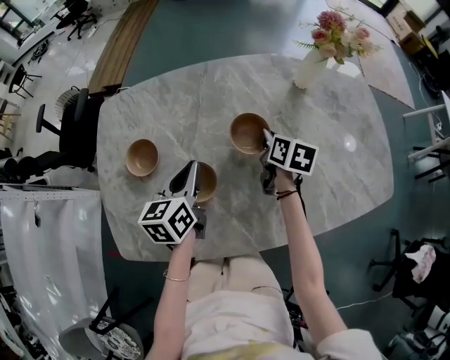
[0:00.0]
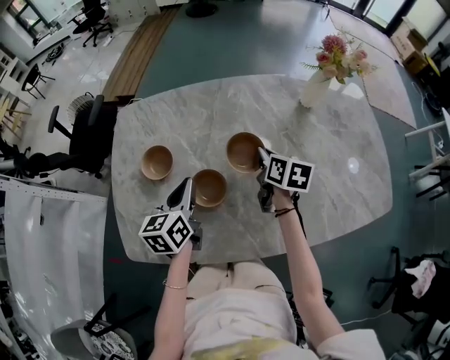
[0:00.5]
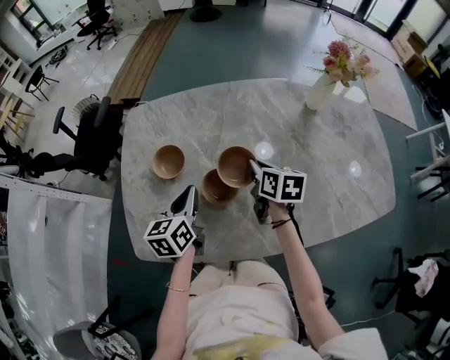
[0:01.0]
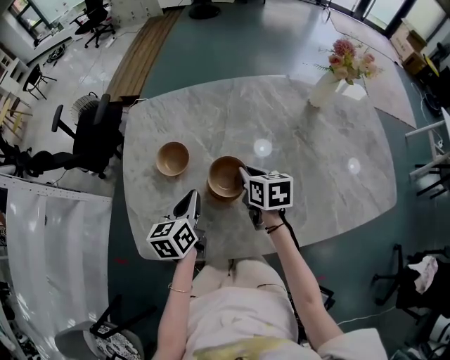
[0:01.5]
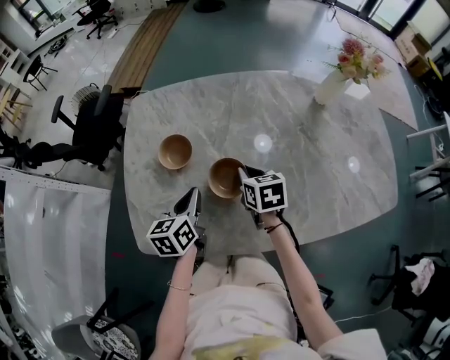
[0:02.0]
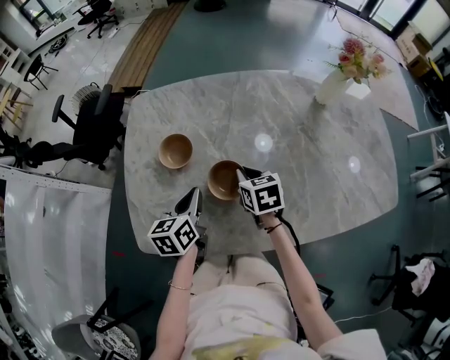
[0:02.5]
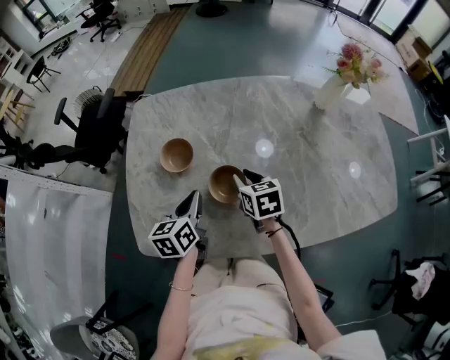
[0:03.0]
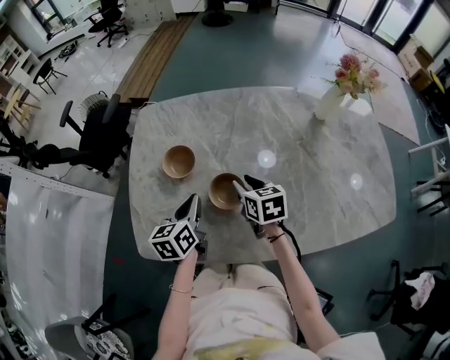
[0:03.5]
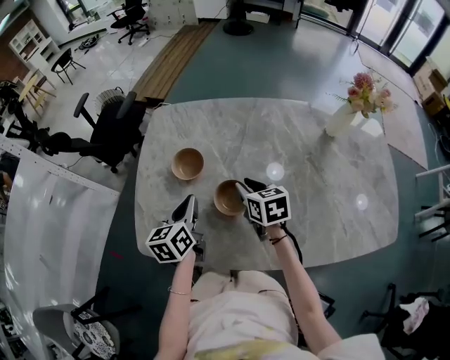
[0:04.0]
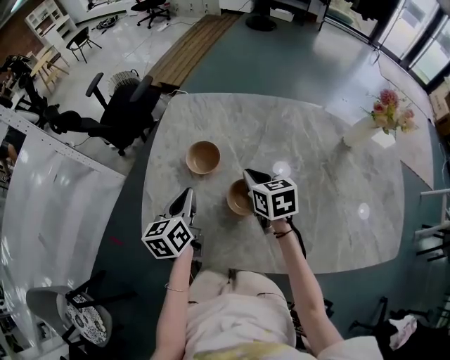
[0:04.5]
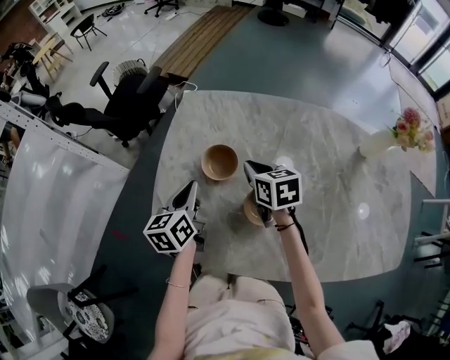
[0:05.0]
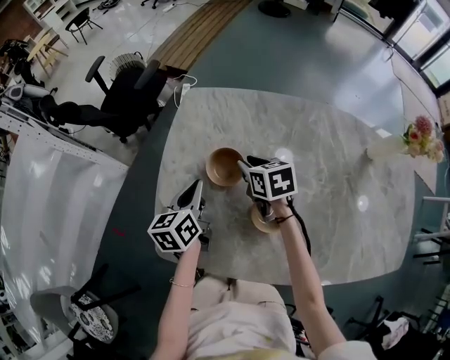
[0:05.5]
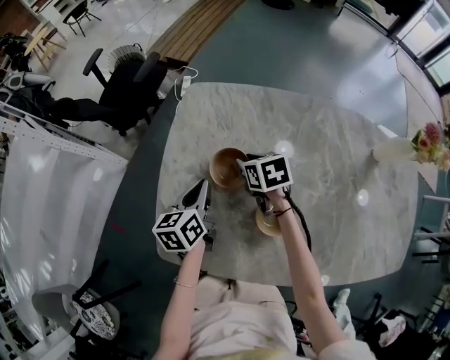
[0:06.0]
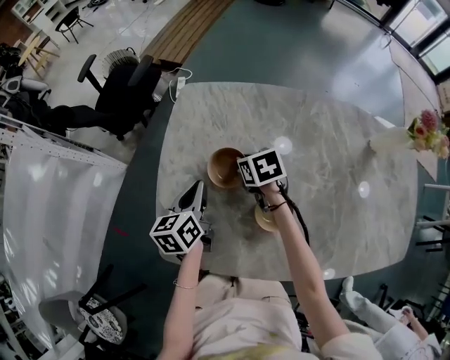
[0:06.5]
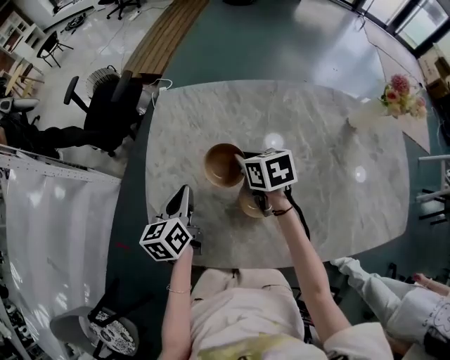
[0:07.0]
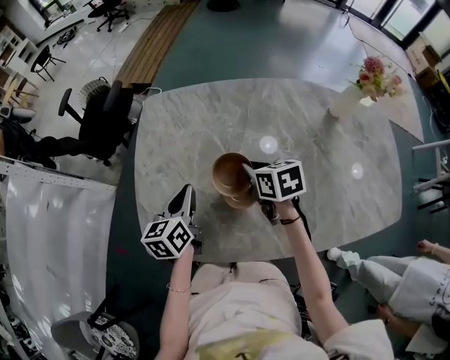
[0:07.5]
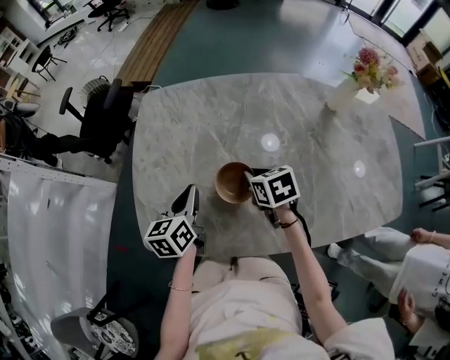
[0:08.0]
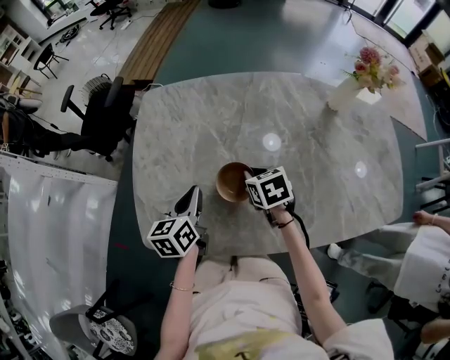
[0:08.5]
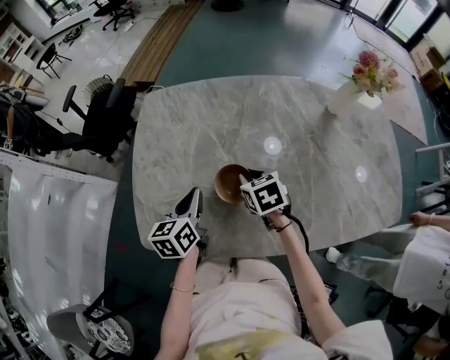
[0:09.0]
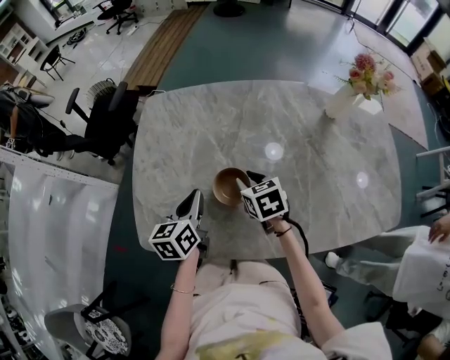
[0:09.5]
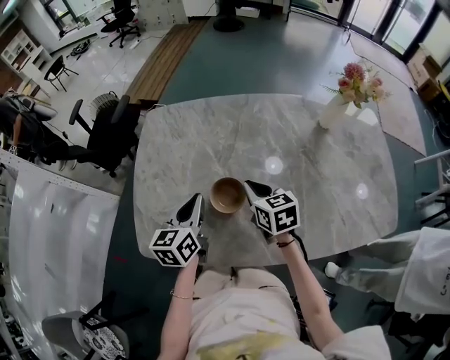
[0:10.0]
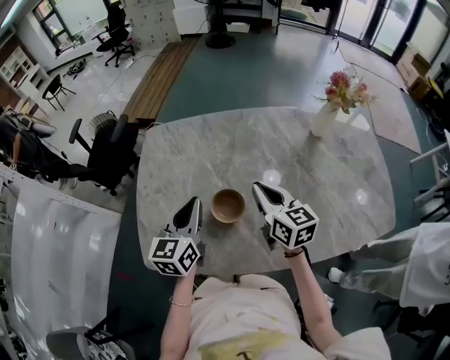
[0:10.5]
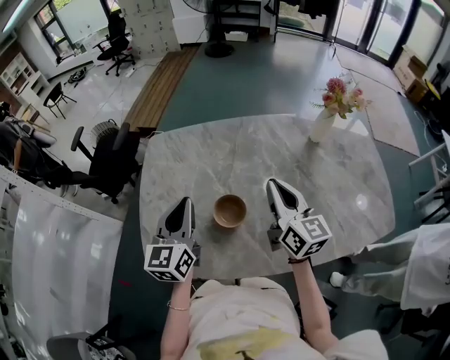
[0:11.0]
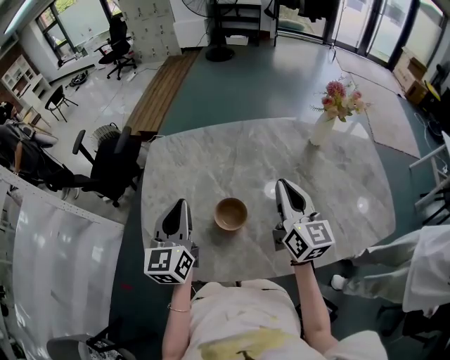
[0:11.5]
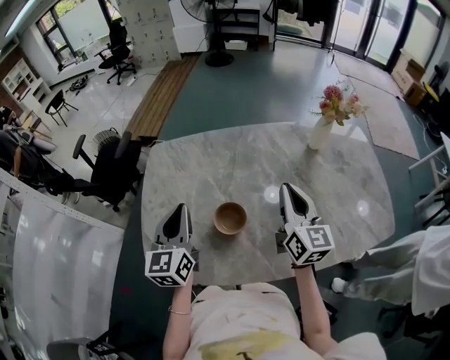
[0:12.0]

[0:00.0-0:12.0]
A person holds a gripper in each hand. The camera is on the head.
0:00.0 to 0:02.0: The left gripper moves to the left and backward, some 15 cm. Meanwhile the right gripper travels to the left and backward by about 20 cm, and swivels about 30 degrees.
0:02.0 to 0:04.0: The grippers move only a little.
0:04.0 to 0:06.0: Both grippers move forward and to the left, about 15 cm. The right gripper closes and opens again.
0:06.0 to 0:08.0: The right gripper goes approximately 20 cm backward and to the right, and closes its fingers; the left gripper moves backward and to the right, roughly 10 cm.
0:08.0 to 0:10.0: The left gripper ends up some 5 cm from where it was; the right gripper moves approximately 5 cm, and opens and closes again.
0:10.0 to 0:12.0: The left gripper goes about 10 cm upward, and rotates some 20 degrees. Meanwhile the right gripper goes roughly 20 cm upward and to the right, and tips its fingers upward by approximately 30 degrees.

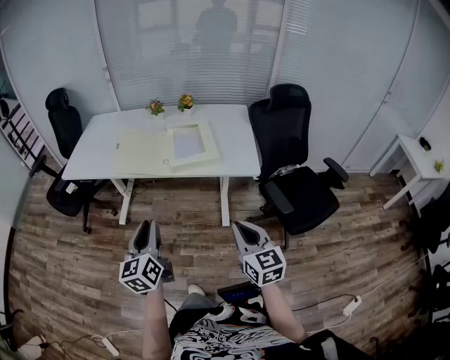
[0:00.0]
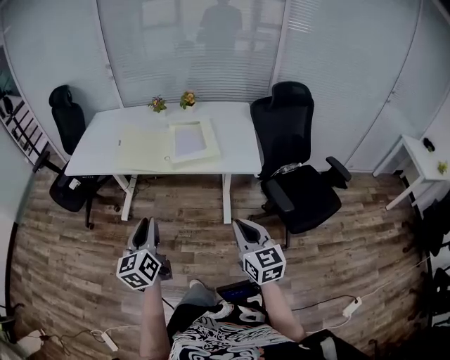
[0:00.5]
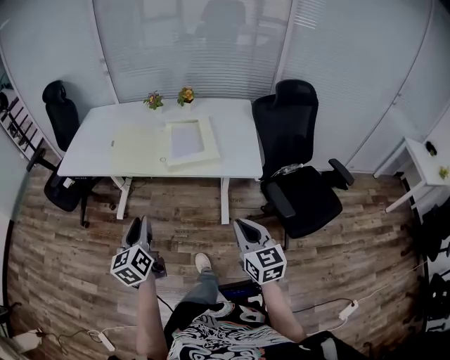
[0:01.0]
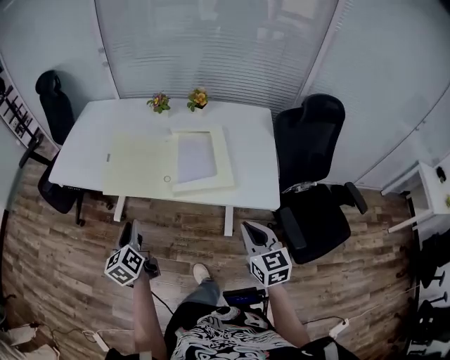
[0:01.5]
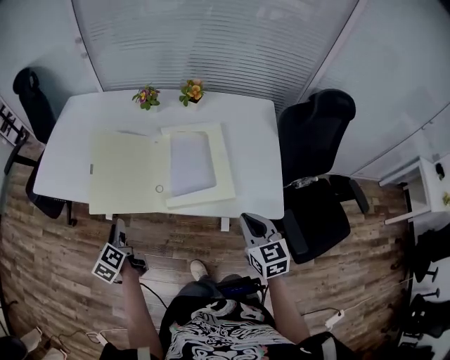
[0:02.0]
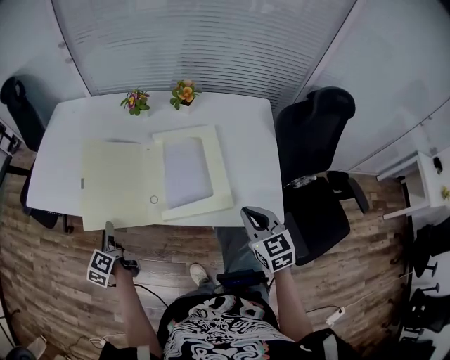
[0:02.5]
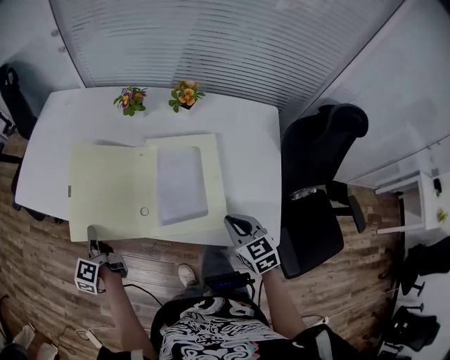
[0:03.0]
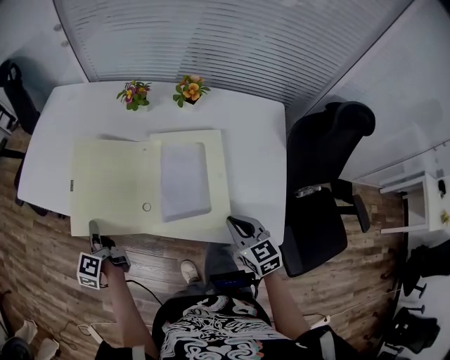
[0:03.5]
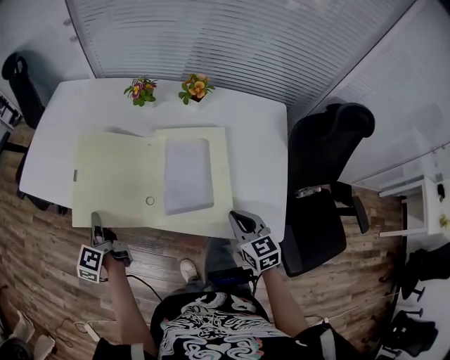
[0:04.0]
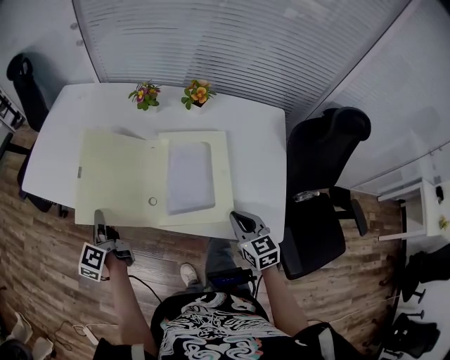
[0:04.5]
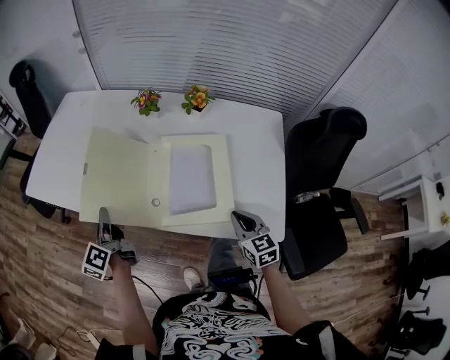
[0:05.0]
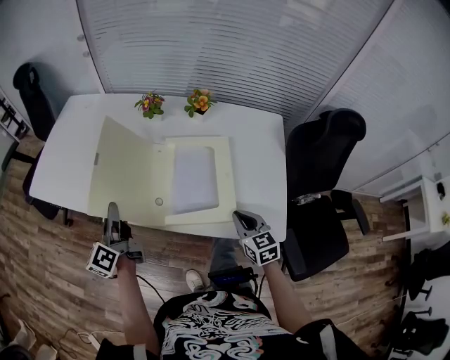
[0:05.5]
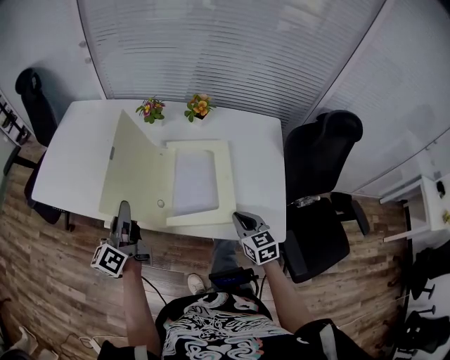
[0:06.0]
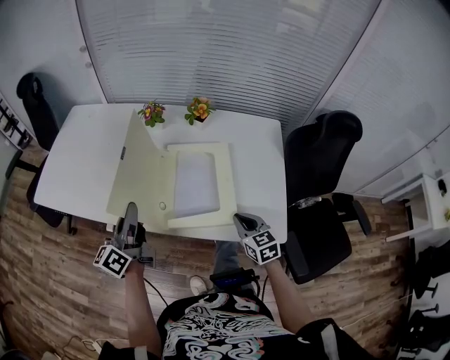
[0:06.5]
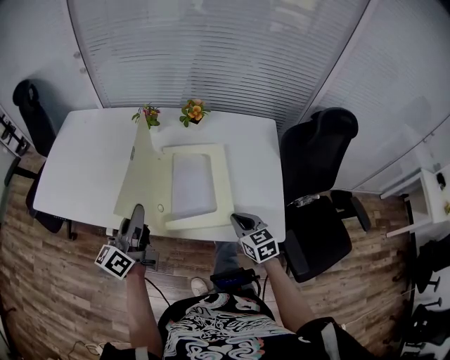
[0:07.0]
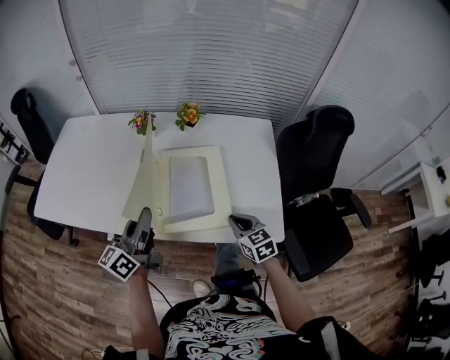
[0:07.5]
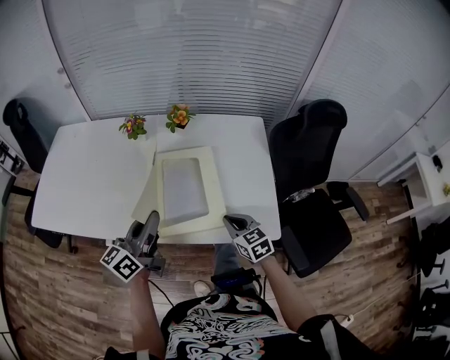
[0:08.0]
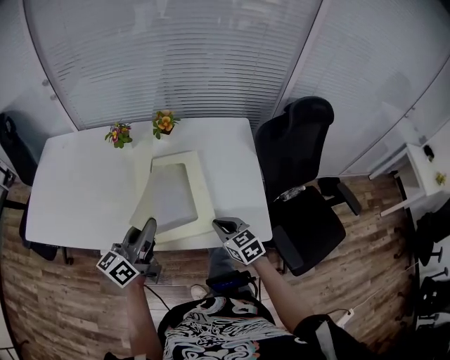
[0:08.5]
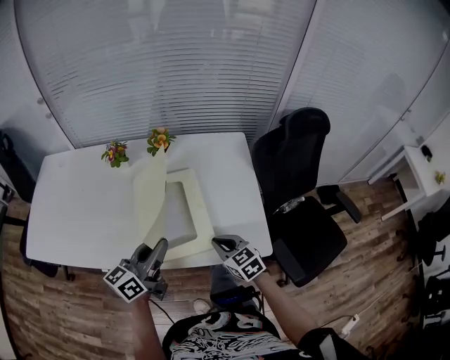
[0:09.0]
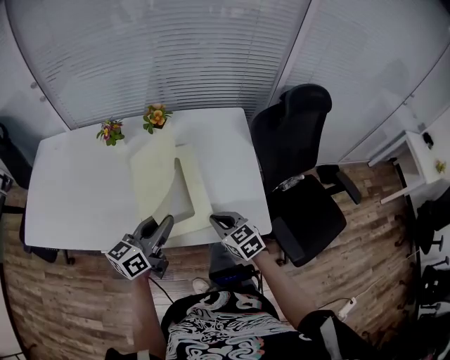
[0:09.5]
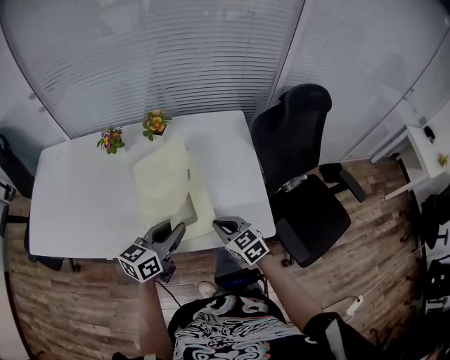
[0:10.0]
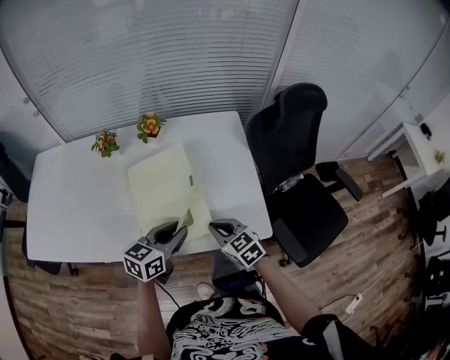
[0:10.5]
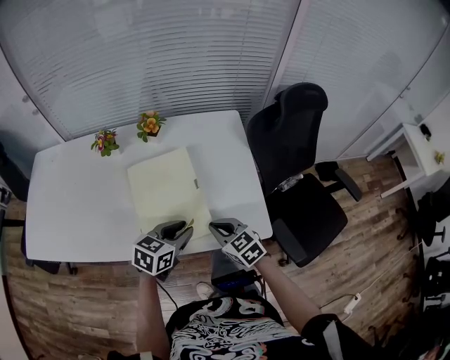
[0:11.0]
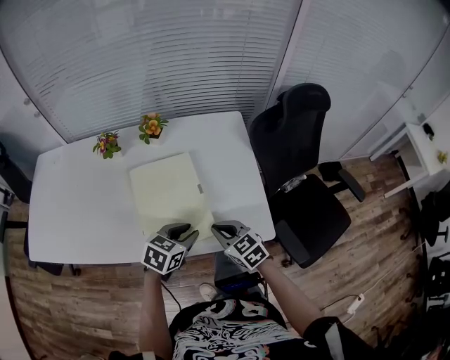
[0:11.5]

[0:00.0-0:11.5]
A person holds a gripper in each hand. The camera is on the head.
0:00.0 to 0:02.0: The left gripper shifts about 35 cm forward and downward, and turns by roughly 40 degrees. The right gripper goes approximately 30 cm forward.
0:02.0 to 0:04.0: The right gripper goes approximately 10 cm forward and downward. Meanwhile the left gripper is displaced forward by roughly 10 cm, turns by about 20 degrees, and closes up.
0:04.0 to 0:06.0: The left gripper heads upward and to the right, covering about 15 cm, and changes its angle by some 30 degrees.
0:06.0 to 0:07.5: The left gripper shifts about 10 cm to the right, and rotates some 20 degrees.
0:07.5 to 0:09.5: The left gripper moves to the right, some 15 cm, and changes its angle by approximately 30 degrees.
0:09.5 to 0:11.5: The left gripper shifts approximately 10 cm downward and to the right, and angles its fingers downward, by some 40 degrees.

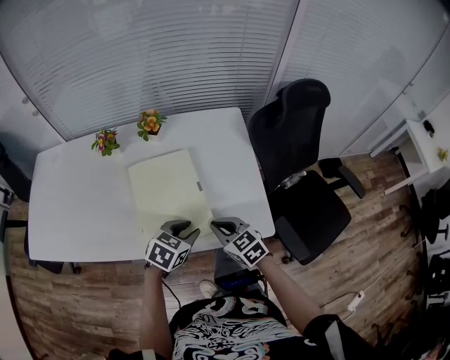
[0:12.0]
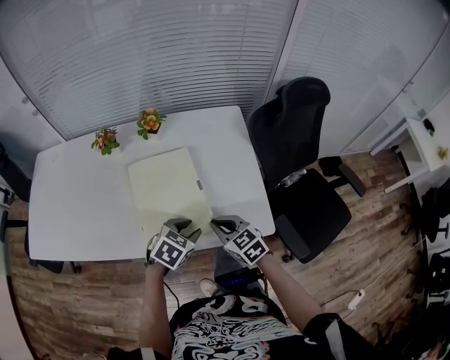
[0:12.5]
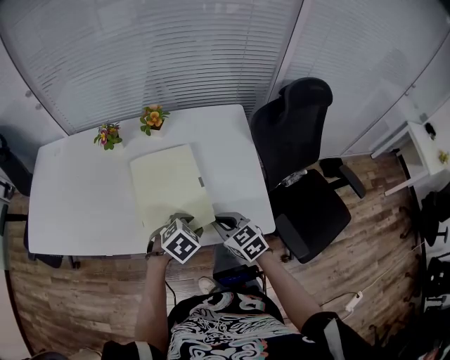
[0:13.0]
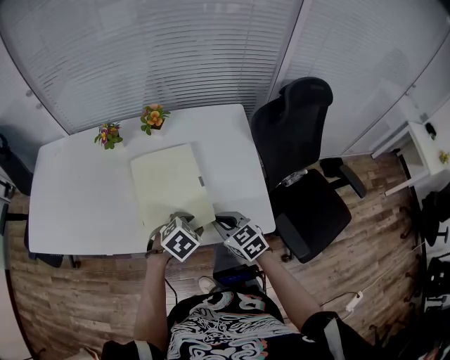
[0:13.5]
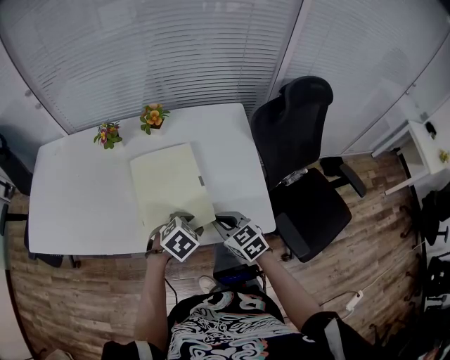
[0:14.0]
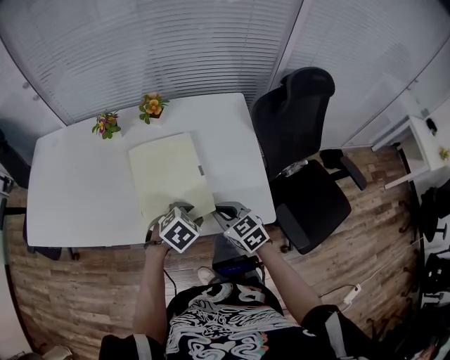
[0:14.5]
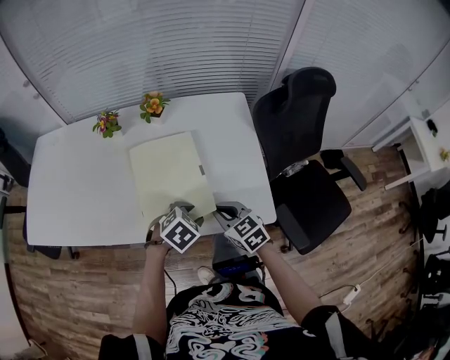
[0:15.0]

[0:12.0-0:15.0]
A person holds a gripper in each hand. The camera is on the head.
0:12.0 to 0:13.5: The left gripper changes its angle by about 20 degrees.
0:13.5 to 0:15.0: The two grippers keep their place.
